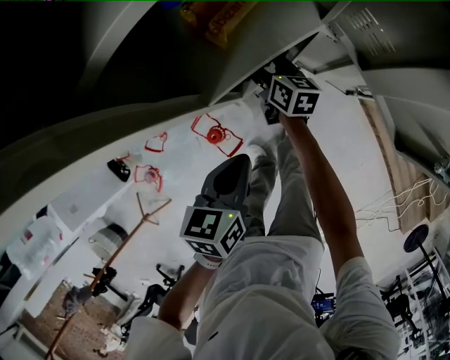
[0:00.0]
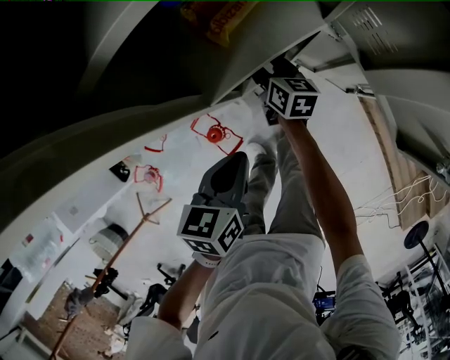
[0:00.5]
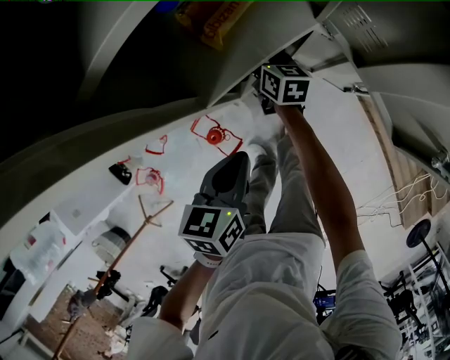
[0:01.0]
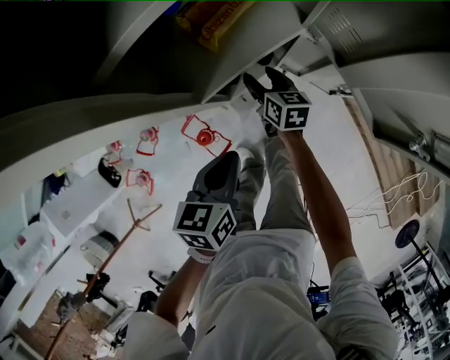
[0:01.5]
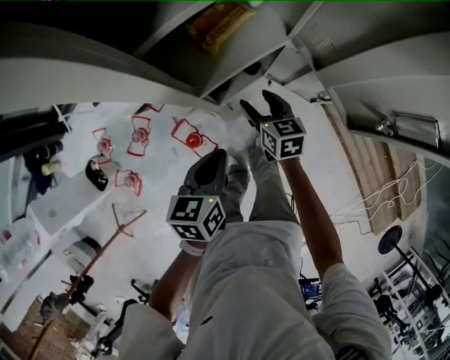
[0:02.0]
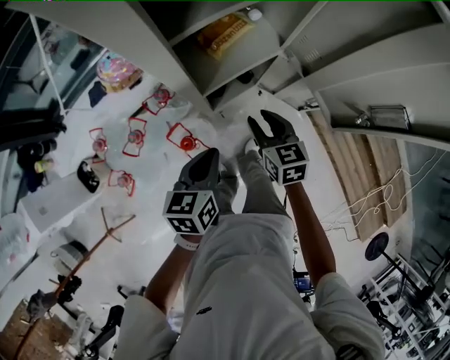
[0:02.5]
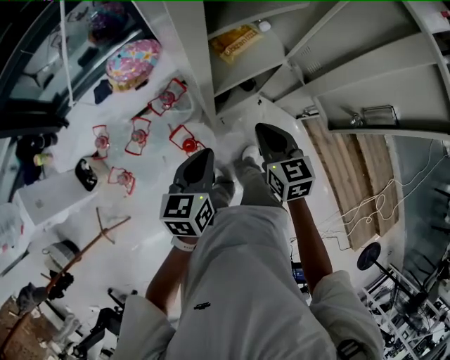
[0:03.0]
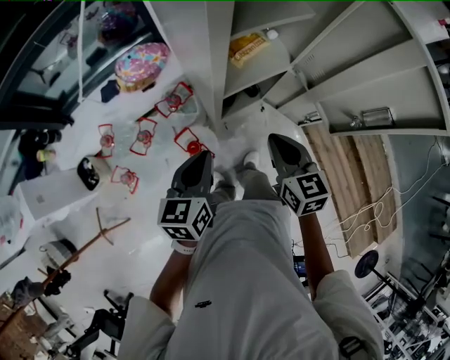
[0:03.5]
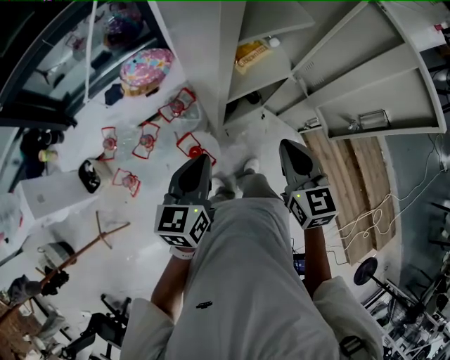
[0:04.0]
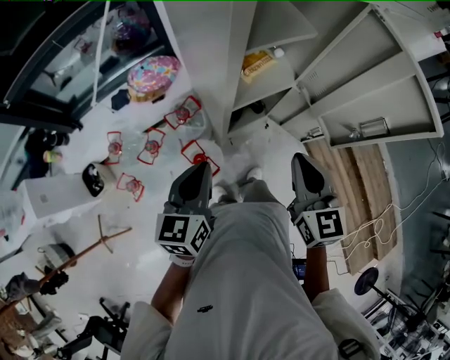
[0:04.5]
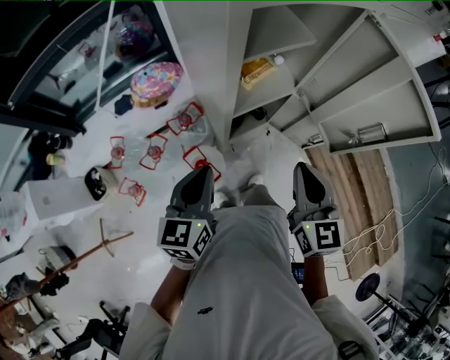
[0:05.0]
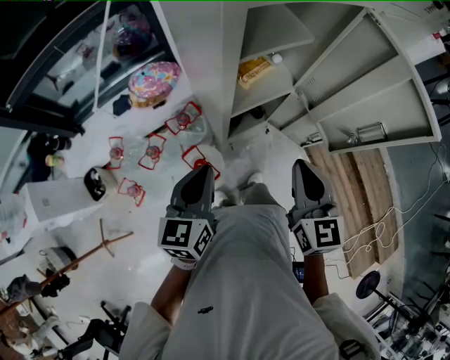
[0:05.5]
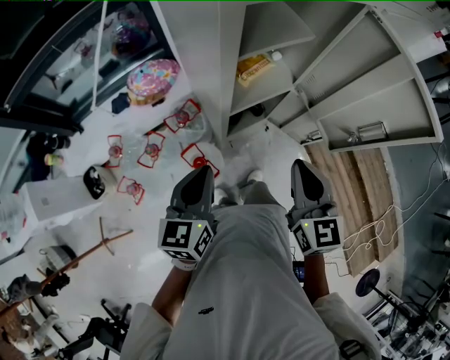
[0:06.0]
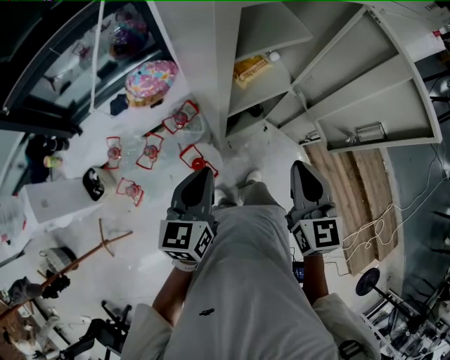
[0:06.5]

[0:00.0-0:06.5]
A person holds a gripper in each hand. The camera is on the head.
0:00.0 to 0:02.0: The right gripper travels backward and upward by approximately 15 cm, and turns by roughly 20 degrees.
0:02.0 to 0:04.5: The right gripper goes about 30 cm upward and backward, changes its angle by approximately 30 degrees, and closes up; the left gripper is displaced upward and to the left by roughly 15 cm, and turns by about 20 degrees.
0:04.5 to 0:06.5: The grippers move only a little.

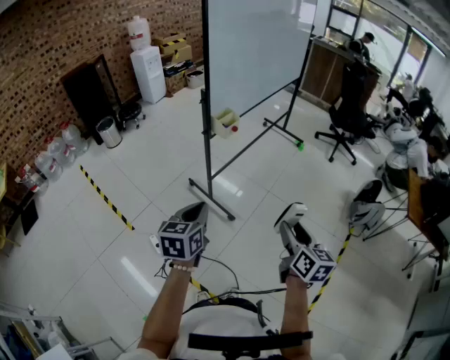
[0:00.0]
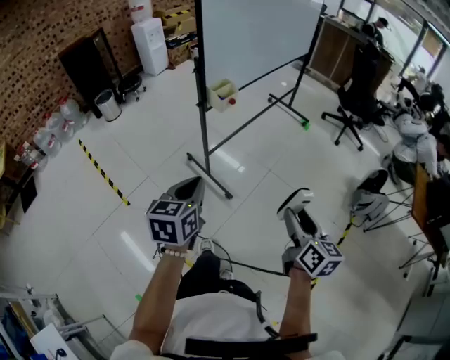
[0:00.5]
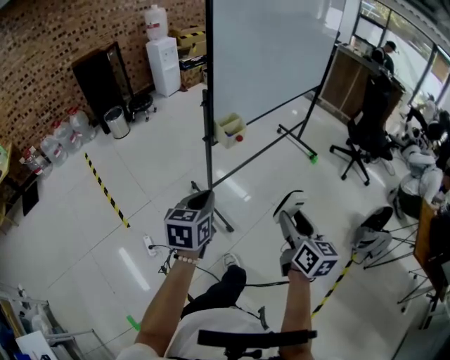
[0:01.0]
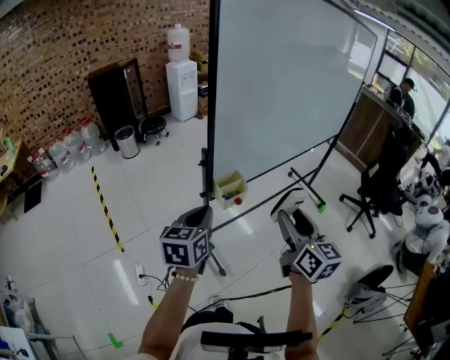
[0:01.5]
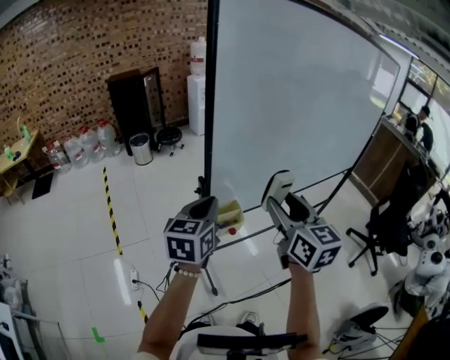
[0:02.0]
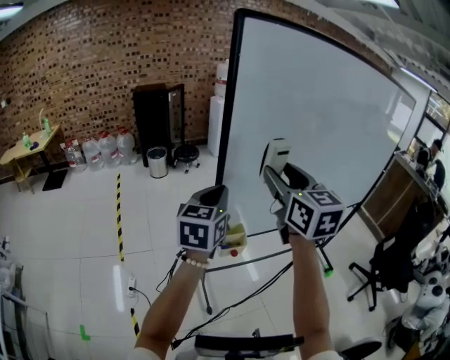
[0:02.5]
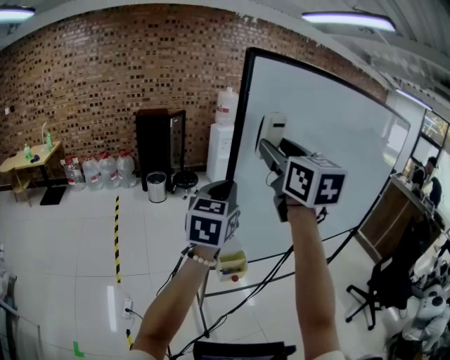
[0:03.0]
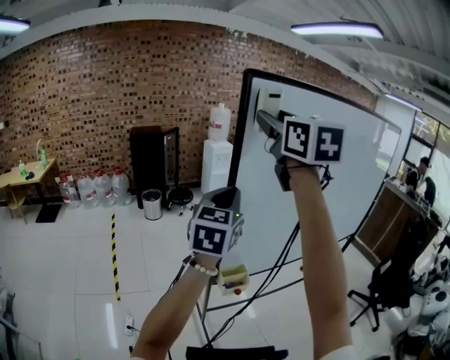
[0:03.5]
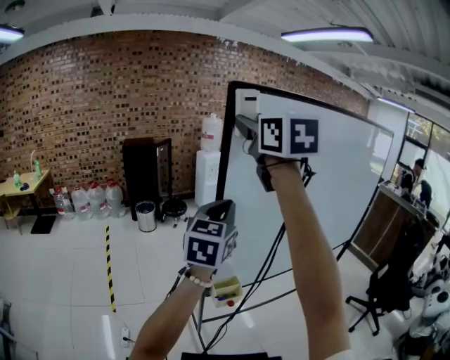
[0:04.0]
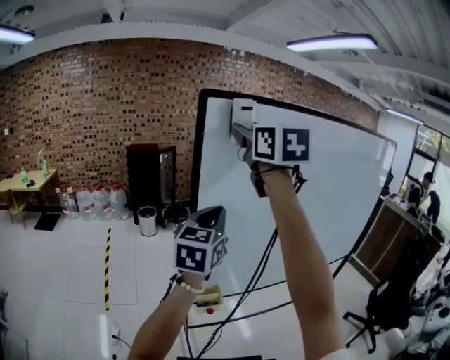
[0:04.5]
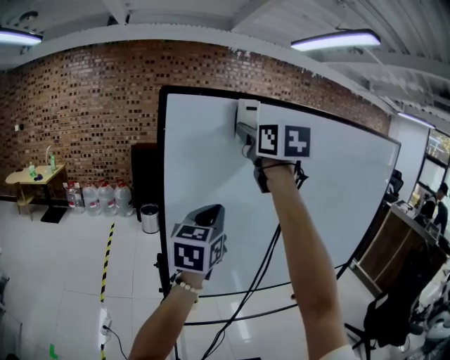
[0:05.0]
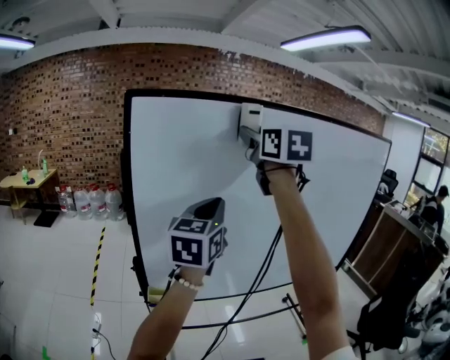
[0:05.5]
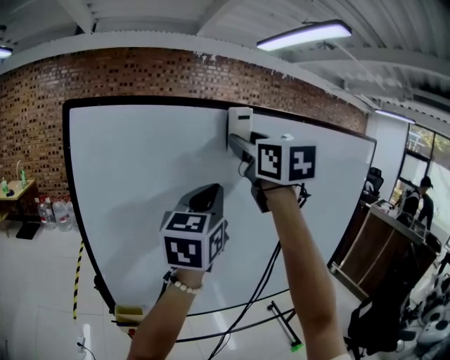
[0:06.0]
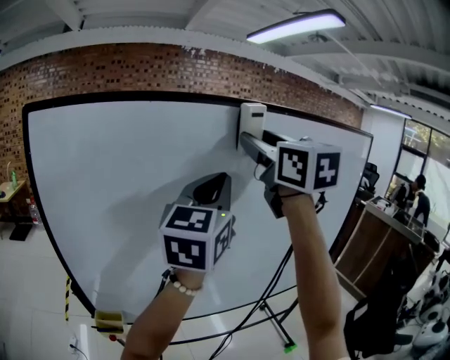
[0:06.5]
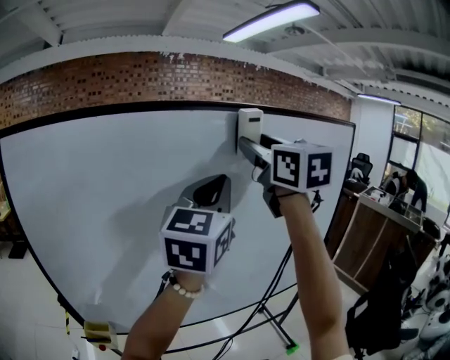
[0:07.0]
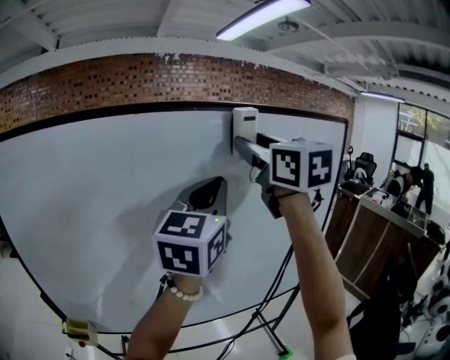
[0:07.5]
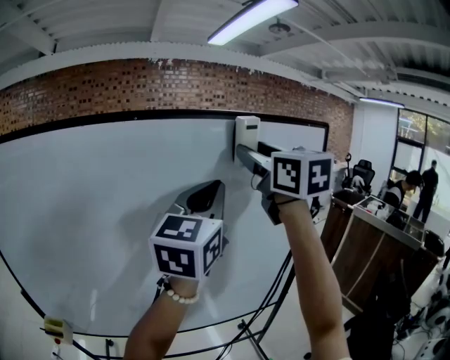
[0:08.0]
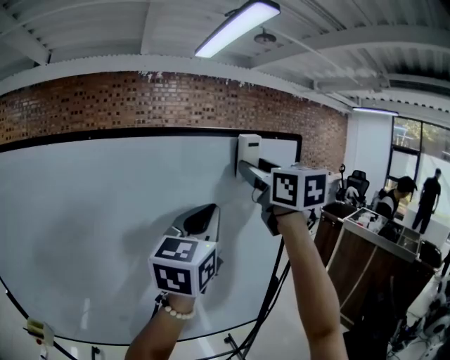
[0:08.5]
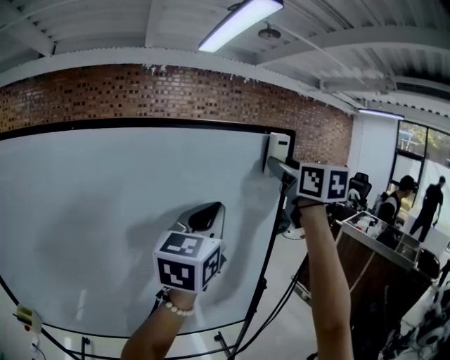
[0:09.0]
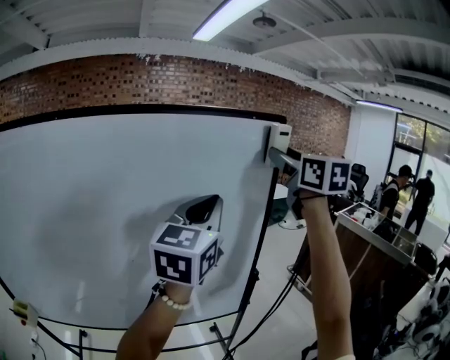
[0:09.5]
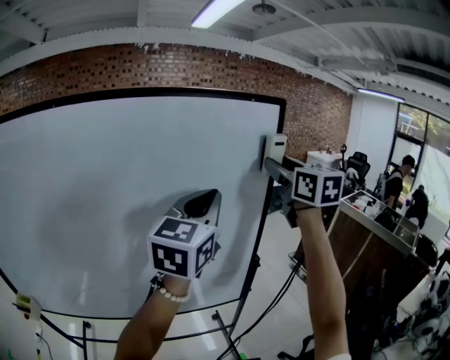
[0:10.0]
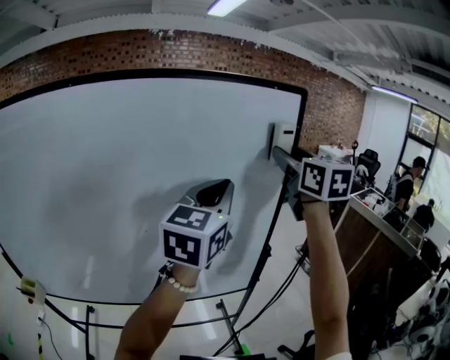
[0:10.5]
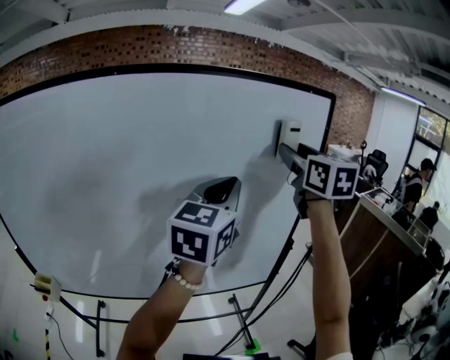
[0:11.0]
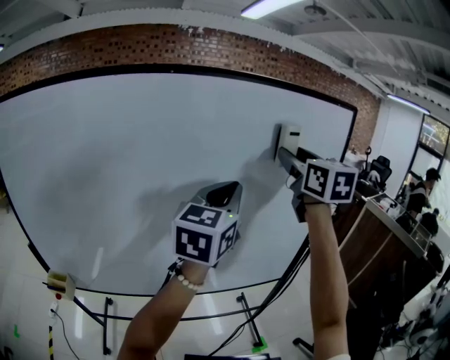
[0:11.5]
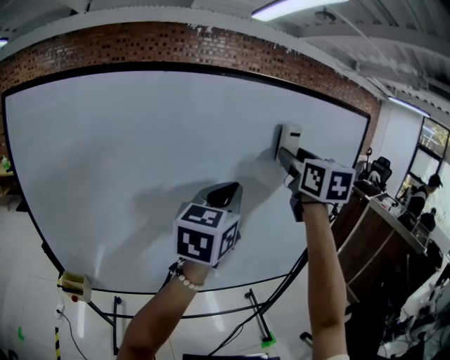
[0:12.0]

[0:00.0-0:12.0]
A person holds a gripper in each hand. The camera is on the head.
0:00.0 to 0:02.0: Both grippers are carried some 50 cm. The right gripper rotates approximately 40 degrees. Meanwhile the left gripper swivels some 30 degrees.
0:02.0 to 0:04.0: The right gripper heads upward, covering about 35 cm. The left gripper is displaced upward by some 20 cm, and turns by about 20 degrees.
0:04.0 to 0:06.0: Both grippers travel together to the right, roughly 35 cm.
0:06.0 to 0:08.0: The pair of grippers is taken to the right, some 50 cm.
0:08.0 to 0:10.0: The two grippers go some 25 cm to the right.
0:10.0 to 0:12.0: Both grippers travel together to the left, about 35 cm.

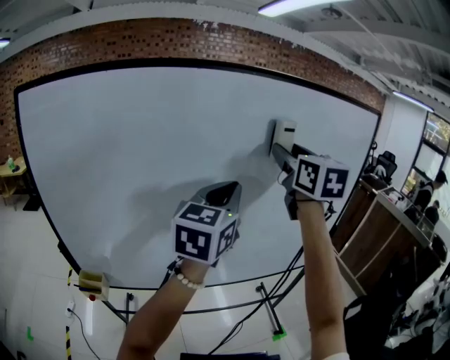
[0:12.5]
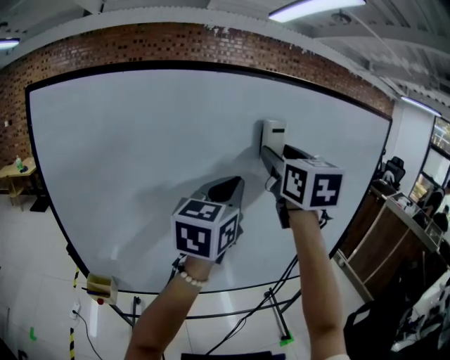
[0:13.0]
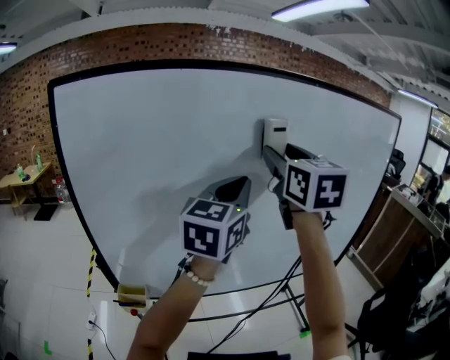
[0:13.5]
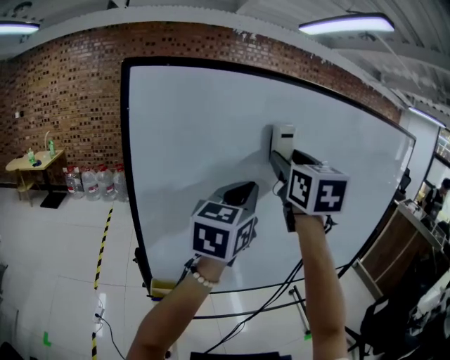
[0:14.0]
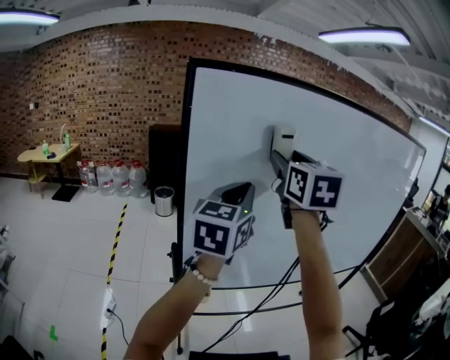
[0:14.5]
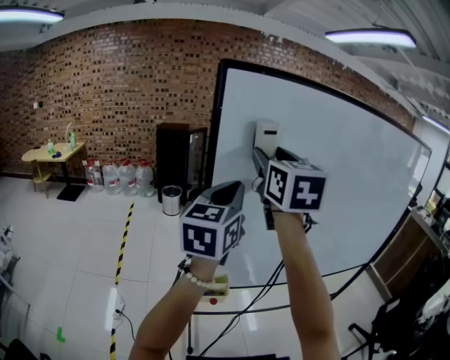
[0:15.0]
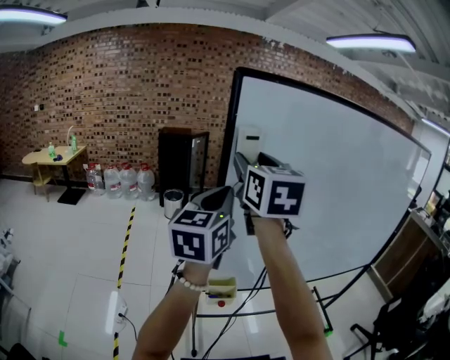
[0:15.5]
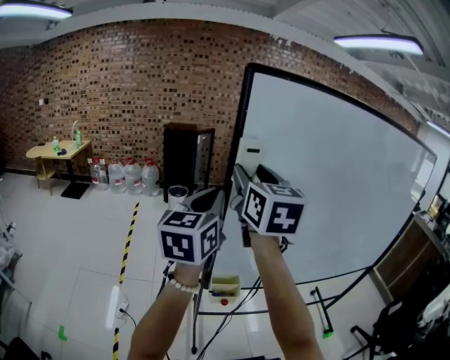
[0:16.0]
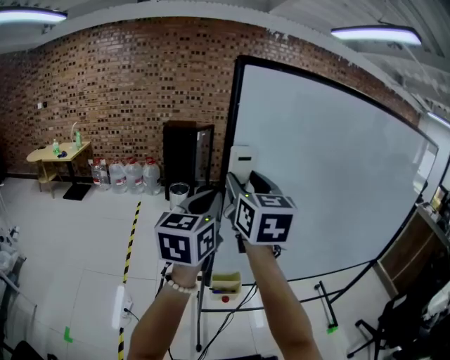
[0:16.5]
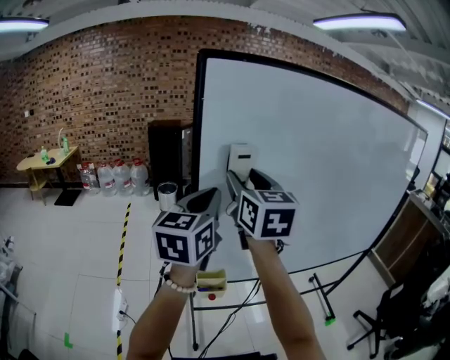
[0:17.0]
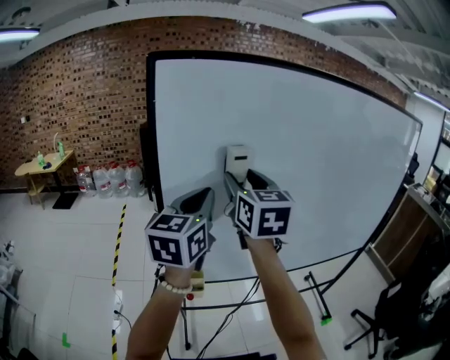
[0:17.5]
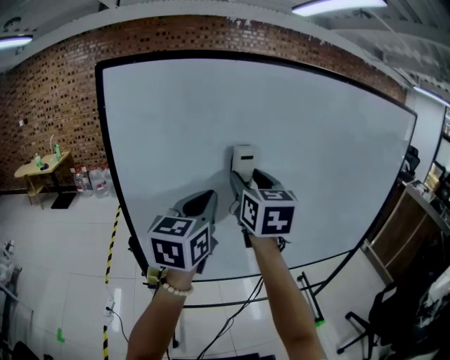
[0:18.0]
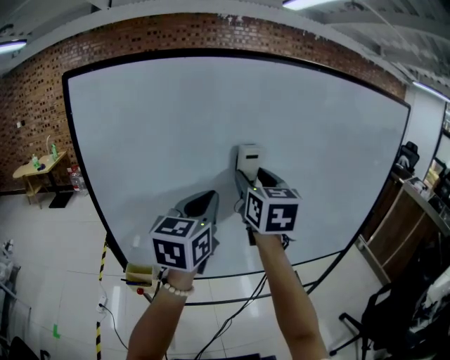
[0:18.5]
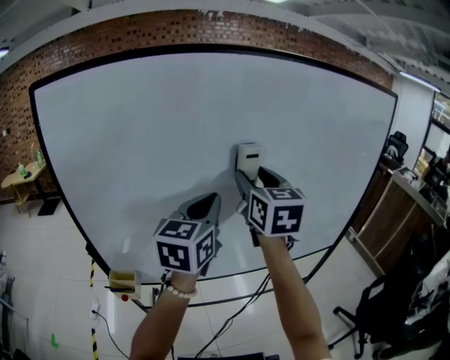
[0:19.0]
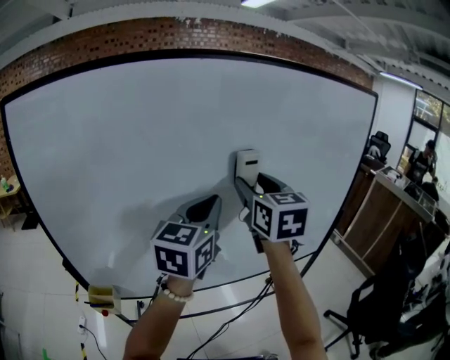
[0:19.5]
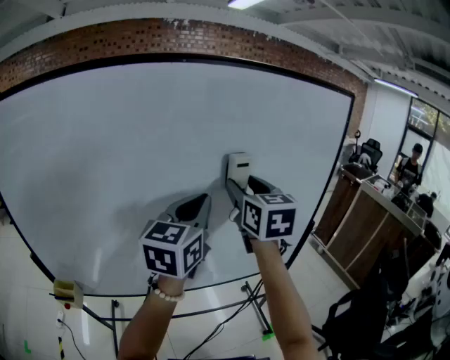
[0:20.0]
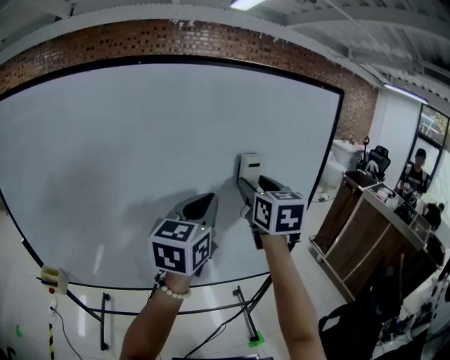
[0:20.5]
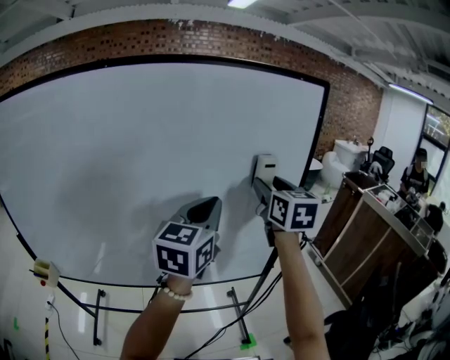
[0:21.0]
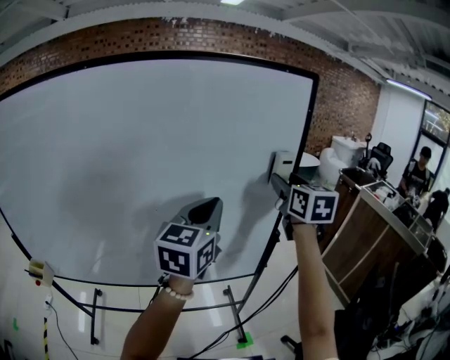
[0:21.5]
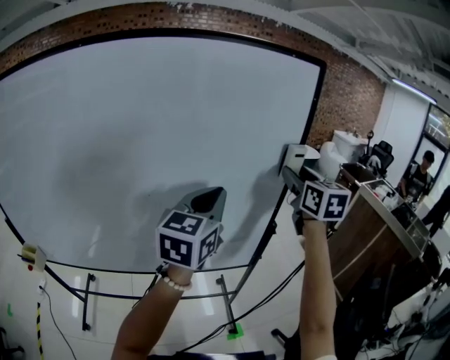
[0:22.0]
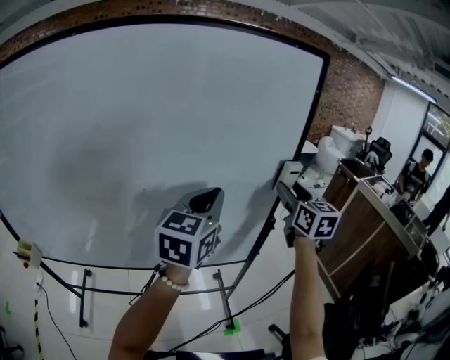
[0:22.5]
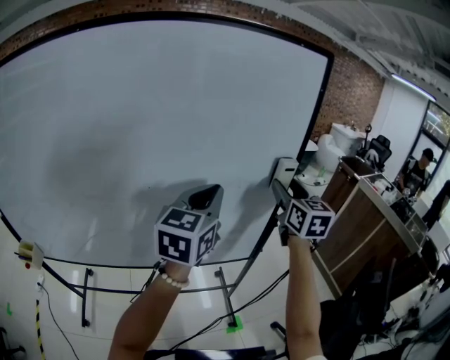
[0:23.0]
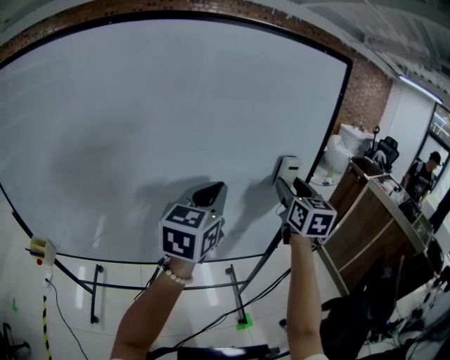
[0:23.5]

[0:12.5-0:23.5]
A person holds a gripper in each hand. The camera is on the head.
0:12.5 to 0:14.5: The two grippers travel together, to the left, about 50 cm.
0:14.5 to 0:16.0: Both grippers move to the left, about 20 cm.
0:16.0 to 0:18.0: The grippers both shift to the right by approximately 30 cm.
0:18.0 to 0:20.0: The two grippers travel together, to the right, about 40 cm.
0:20.0 to 0:21.5: The two grippers go about 30 cm to the right.
0:21.5 to 0:23.5: The left gripper is displaced to the left by approximately 5 cm; the right gripper moves downward, roughly 10 cm.
